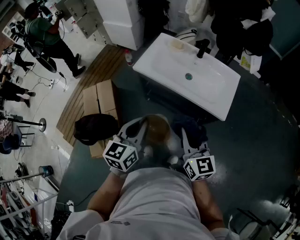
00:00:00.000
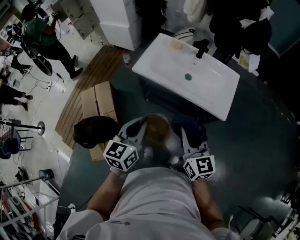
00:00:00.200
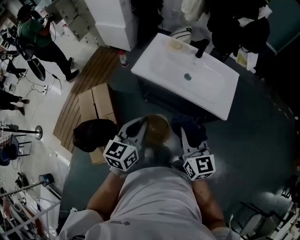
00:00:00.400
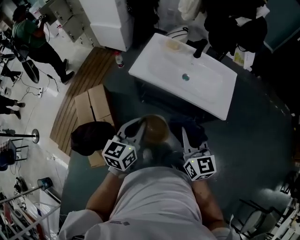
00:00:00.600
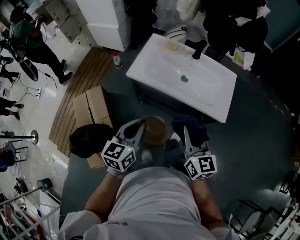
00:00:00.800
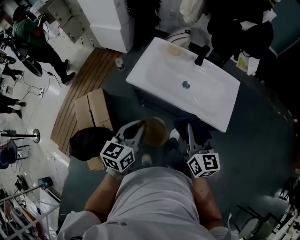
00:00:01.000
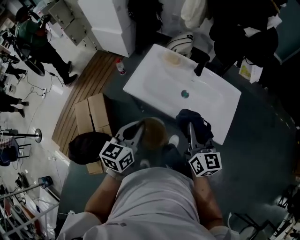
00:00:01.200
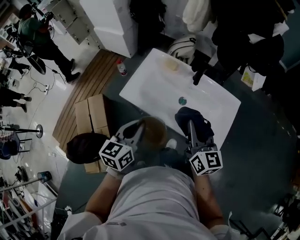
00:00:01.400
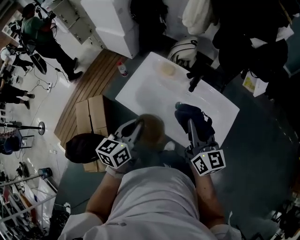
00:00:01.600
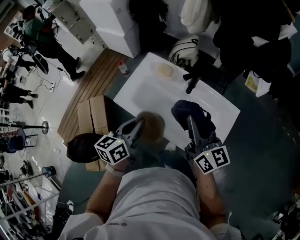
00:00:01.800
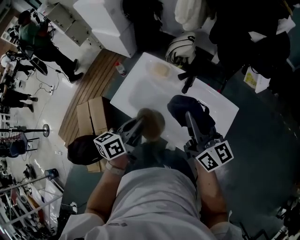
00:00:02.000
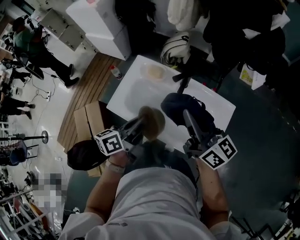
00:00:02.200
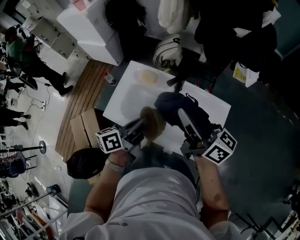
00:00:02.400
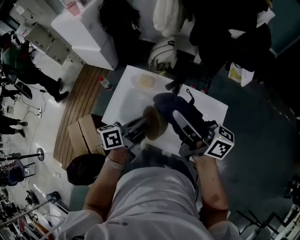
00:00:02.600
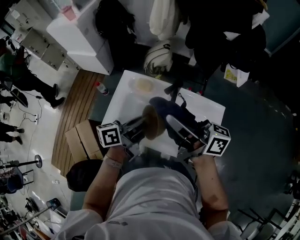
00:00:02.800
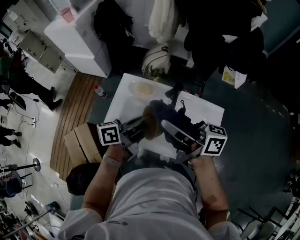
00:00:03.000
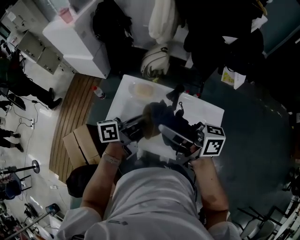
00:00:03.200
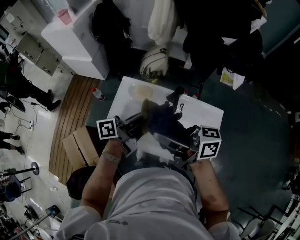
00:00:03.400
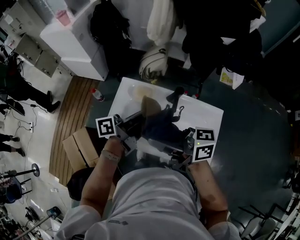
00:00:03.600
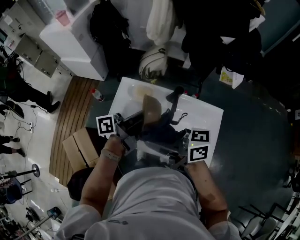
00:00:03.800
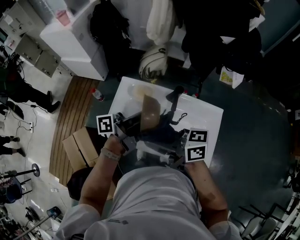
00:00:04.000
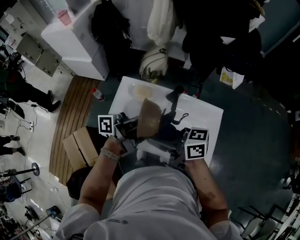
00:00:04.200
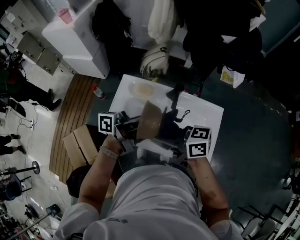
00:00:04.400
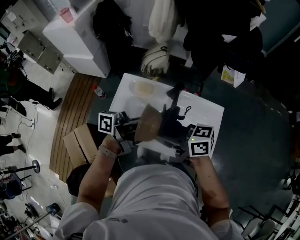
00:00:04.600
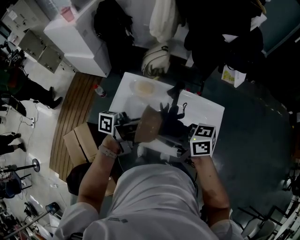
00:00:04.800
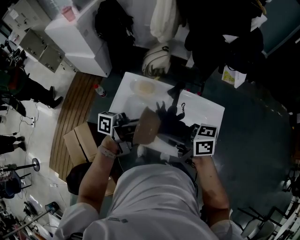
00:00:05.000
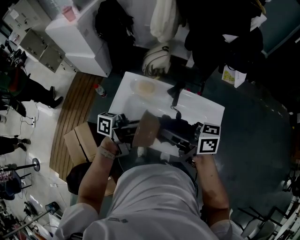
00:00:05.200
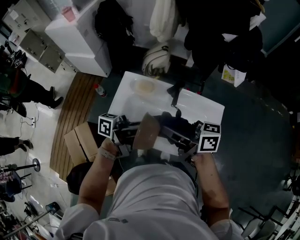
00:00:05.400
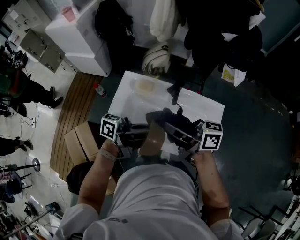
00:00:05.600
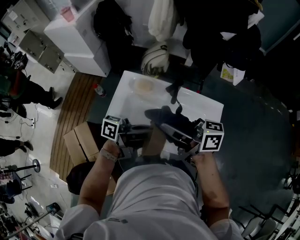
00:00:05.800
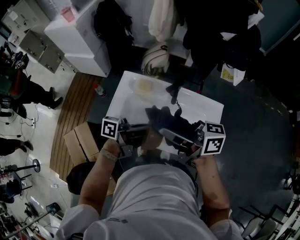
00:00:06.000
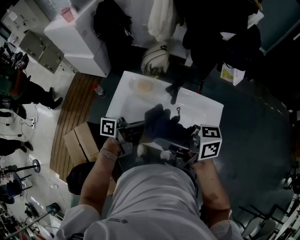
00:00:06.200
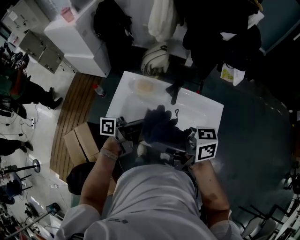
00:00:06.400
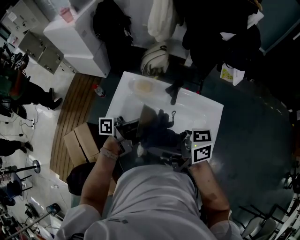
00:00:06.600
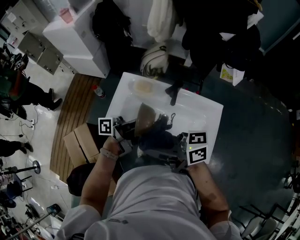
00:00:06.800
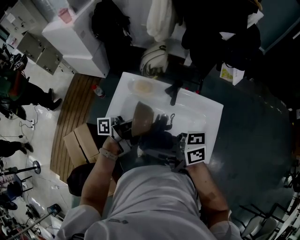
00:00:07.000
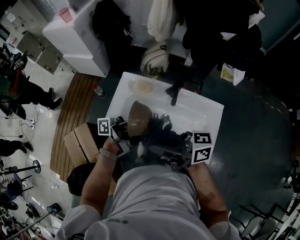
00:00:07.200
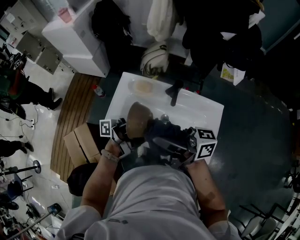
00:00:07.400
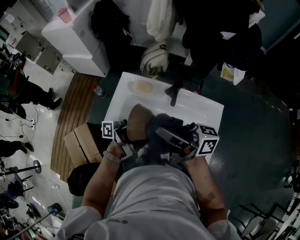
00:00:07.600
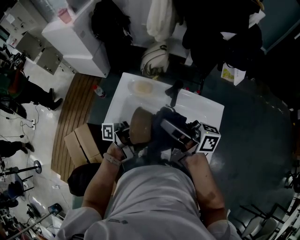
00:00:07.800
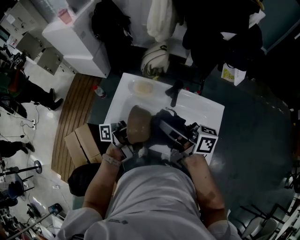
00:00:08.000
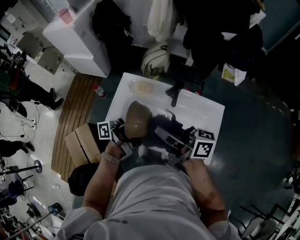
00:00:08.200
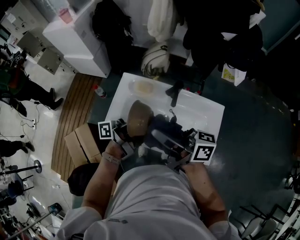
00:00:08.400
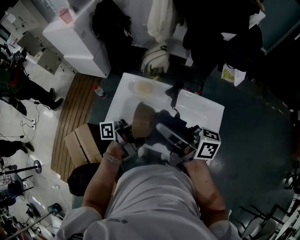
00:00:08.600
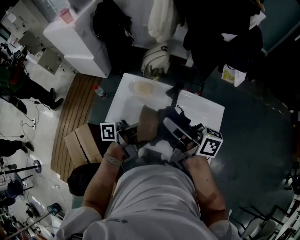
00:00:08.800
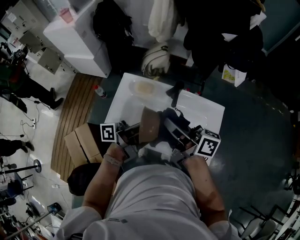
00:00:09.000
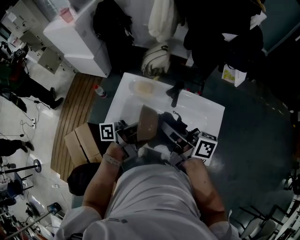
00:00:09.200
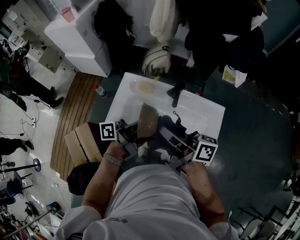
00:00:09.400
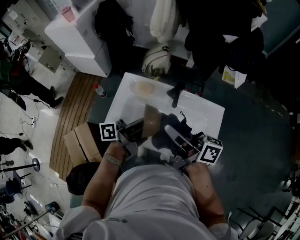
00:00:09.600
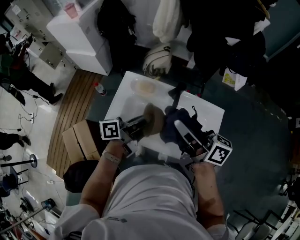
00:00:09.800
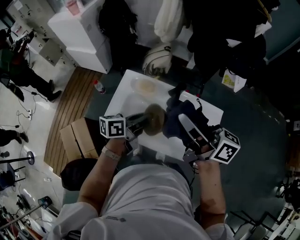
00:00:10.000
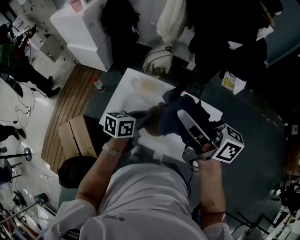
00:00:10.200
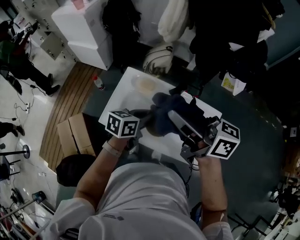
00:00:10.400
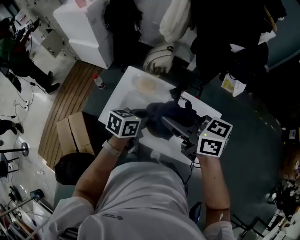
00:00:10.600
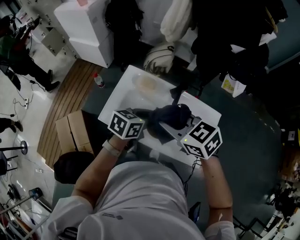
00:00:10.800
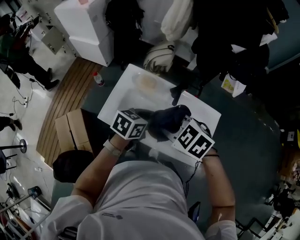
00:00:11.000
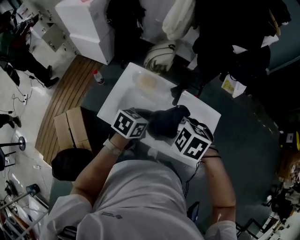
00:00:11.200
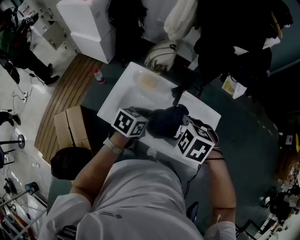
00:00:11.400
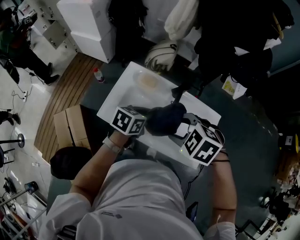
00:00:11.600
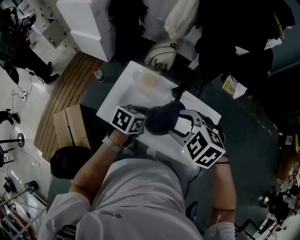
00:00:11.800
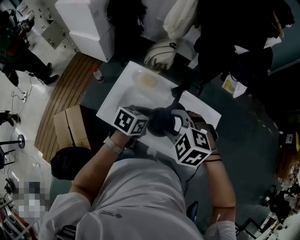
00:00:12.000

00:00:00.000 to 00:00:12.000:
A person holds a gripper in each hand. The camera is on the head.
00:00:00.000 to 00:00:01.600: Both grippers move forward, roughly 25 cm.
00:00:01.600 to 00:00:03.000: The right gripper is displaced upward, forward and to the left by roughly 15 cm, and changes its angle by some 50 degrees. The left gripper is displaced forward and to the right by approximately 15 cm, and rotates approximately 50 degrees.
00:00:03.000 to 00:00:04.400: The left gripper moves upward, about 5 cm, and changes its angle by approximately 30 degrees. The right gripper travels downward by about 10 cm, and swivels some 20 degrees.
00:00:04.400 to 00:00:06.000: The left gripper shifts by roughly 10 cm. Meanwhile the right gripper goes roughly 10 cm upward.
00:00:06.000 to 00:00:07.600: The left gripper changes place by some 5 cm, and turns by approximately 30 degrees.
00:00:07.600 to 00:00:09.000: The right gripper shifts by about 5 cm, and turns by approximately 20 degrees.
00:00:09.000 to 00:00:10.400: The right gripper heads upward, covering some 10 cm, and changes its angle by about 20 degrees; the left gripper travels downward by about 10 cm, and tilts its fingers about 50 degrees downward.
00:00:10.400 to 00:00:12.000: The right gripper heads downward, covering about 15 cm, angles its fingers downward, by approximately 60 degrees, and opens.

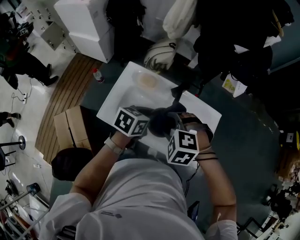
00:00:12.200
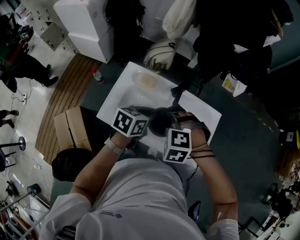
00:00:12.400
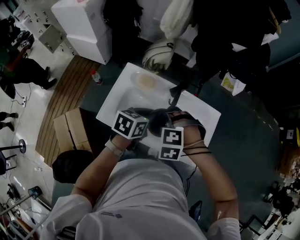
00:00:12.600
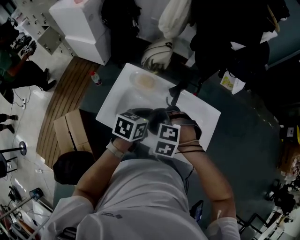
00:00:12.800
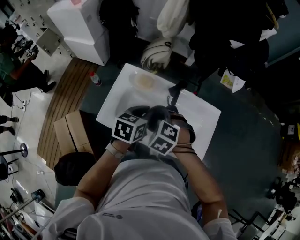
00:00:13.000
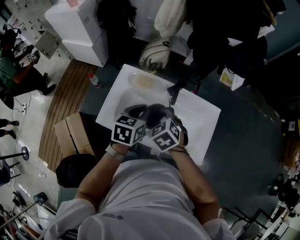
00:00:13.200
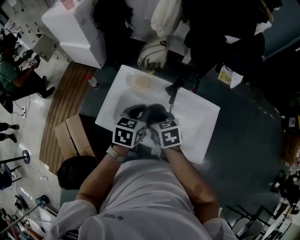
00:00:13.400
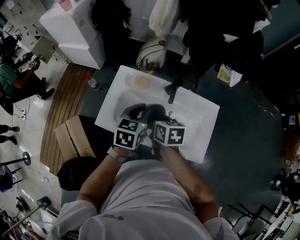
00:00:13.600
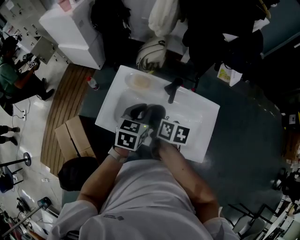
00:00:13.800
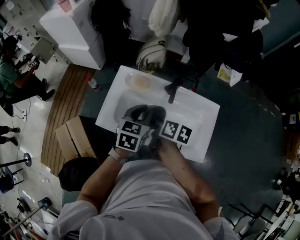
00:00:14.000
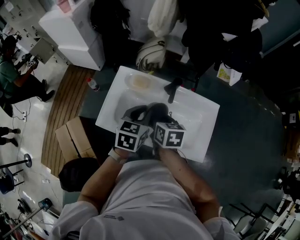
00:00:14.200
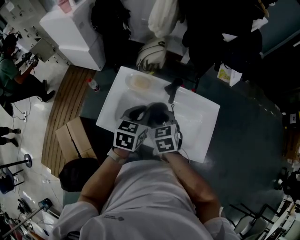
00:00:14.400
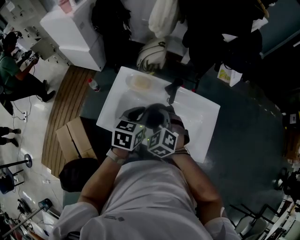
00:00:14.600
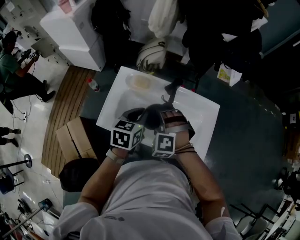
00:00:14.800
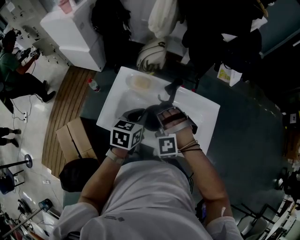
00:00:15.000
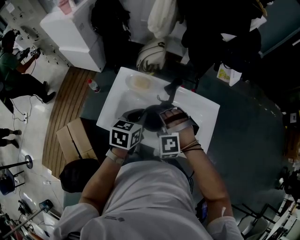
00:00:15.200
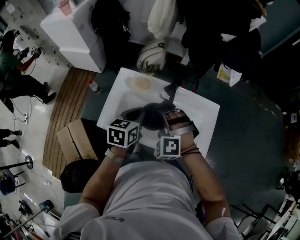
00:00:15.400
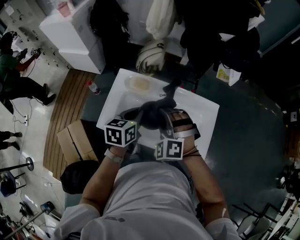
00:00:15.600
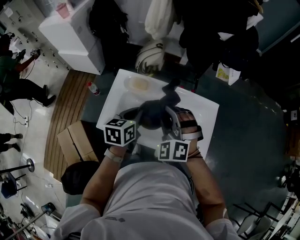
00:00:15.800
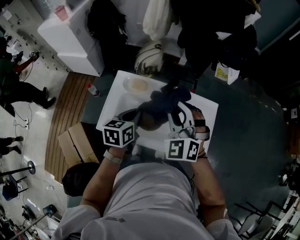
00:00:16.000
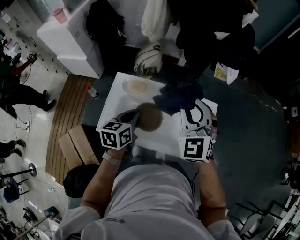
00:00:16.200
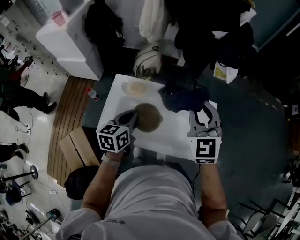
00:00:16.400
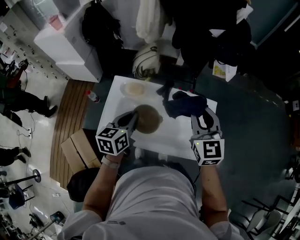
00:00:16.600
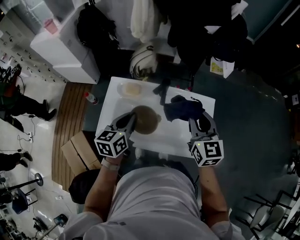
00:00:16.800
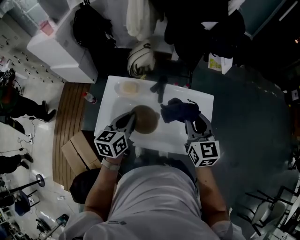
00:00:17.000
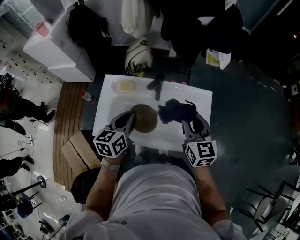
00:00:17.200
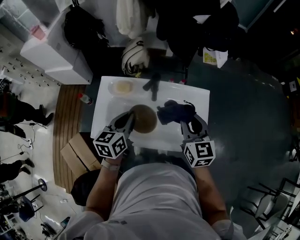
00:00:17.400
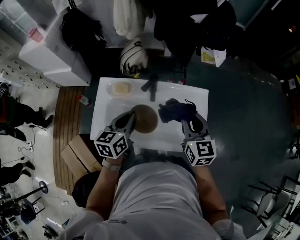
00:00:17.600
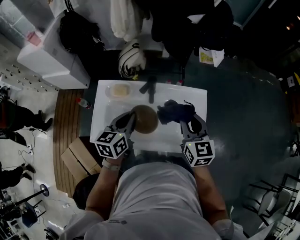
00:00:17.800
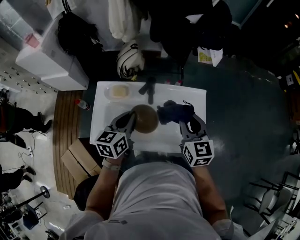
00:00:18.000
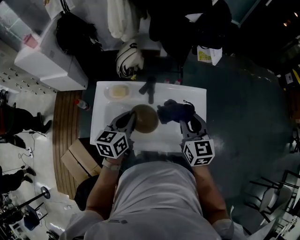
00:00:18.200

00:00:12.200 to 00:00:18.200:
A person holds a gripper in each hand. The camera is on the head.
00:00:12.200 to 00:00:13.800: The right gripper shifts approximately 5 cm downward, and rotates around the line of its fingers by about 100 degrees, clockwise from behind. Meanwhile the left gripper changes its angle by about 20 degrees.
00:00:13.800 to 00:00:15.200: The right gripper rotates around the line of its fingers by about 130 degrees, counterclockwise from behind.
00:00:15.200 to 00:00:16.600: The right gripper moves to the right and upward, some 20 cm, and twists approximately 70 degrees clockwise, seen from behind.
00:00:16.600 to 00:00:18.200: The right gripper shifts roughly 10 cm downward; the left gripper shifts by approximately 5 cm.

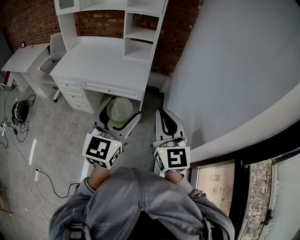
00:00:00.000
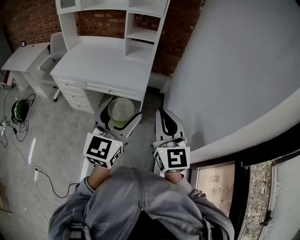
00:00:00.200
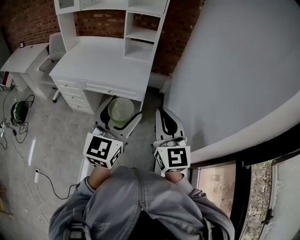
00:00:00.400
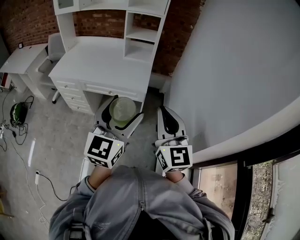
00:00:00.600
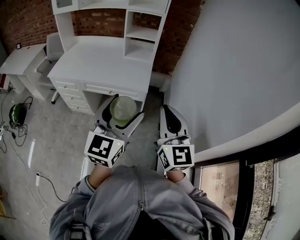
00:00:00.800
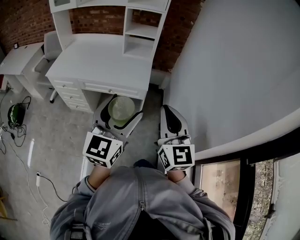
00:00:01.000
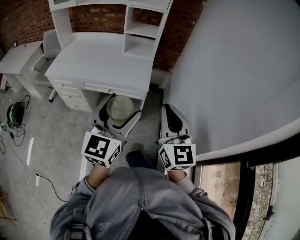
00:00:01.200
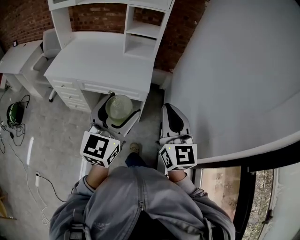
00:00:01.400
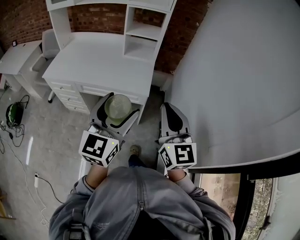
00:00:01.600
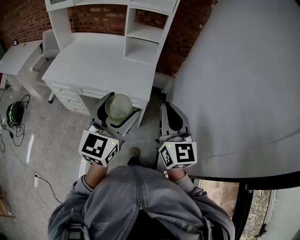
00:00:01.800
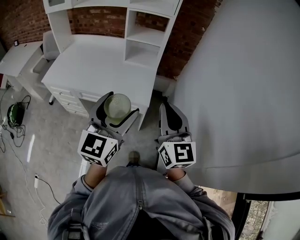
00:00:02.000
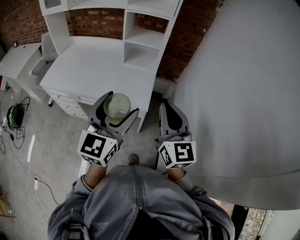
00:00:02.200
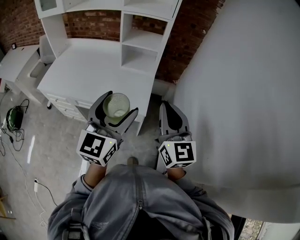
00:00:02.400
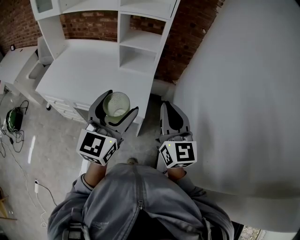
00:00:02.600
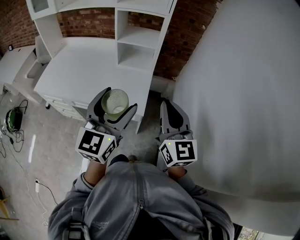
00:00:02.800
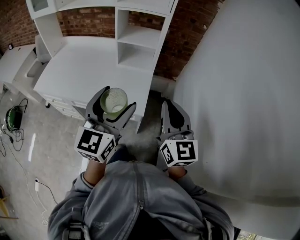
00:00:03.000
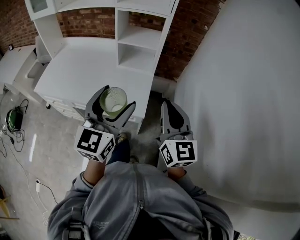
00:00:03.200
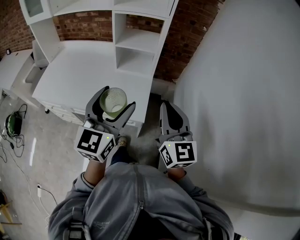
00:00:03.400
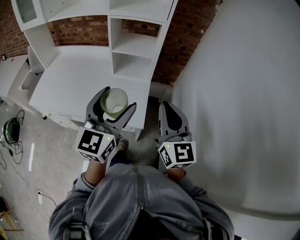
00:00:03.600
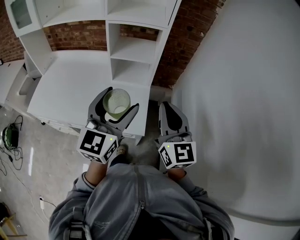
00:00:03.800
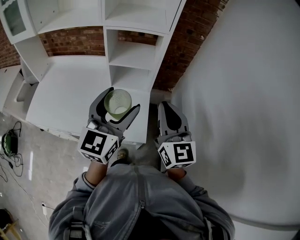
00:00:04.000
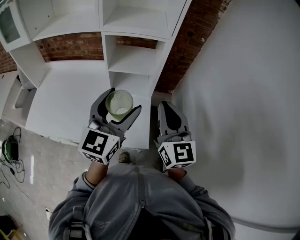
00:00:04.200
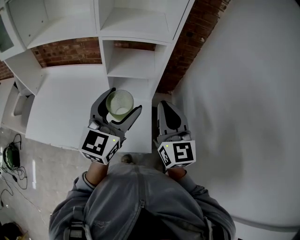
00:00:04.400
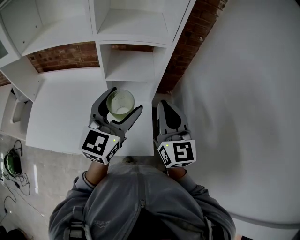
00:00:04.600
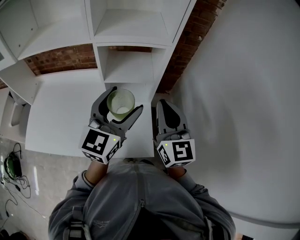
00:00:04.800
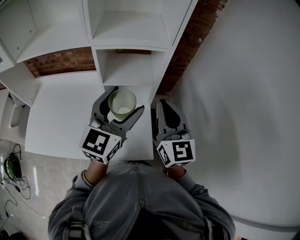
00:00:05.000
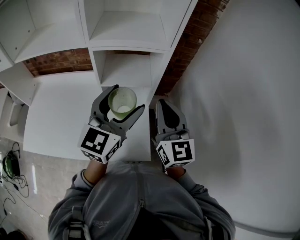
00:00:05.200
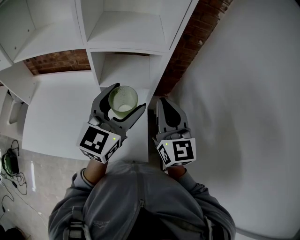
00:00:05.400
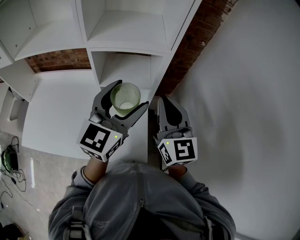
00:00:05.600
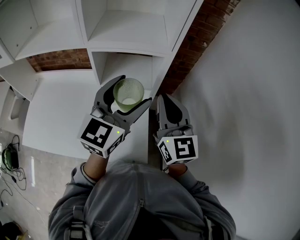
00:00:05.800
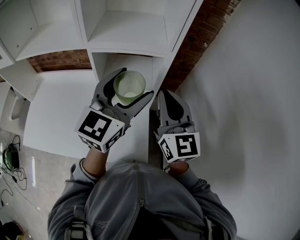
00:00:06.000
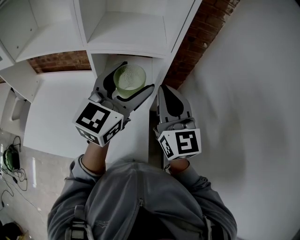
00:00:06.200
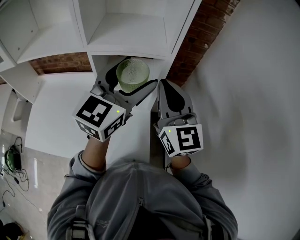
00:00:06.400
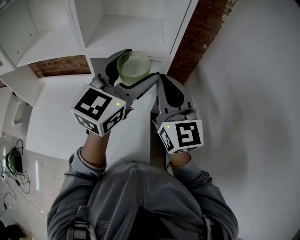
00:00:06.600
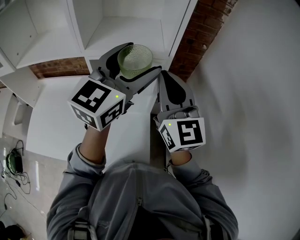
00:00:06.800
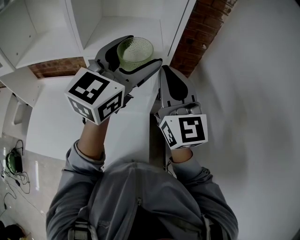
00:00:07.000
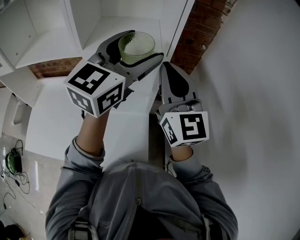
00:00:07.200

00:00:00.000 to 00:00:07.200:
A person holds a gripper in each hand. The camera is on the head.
00:00:00.000 to 00:00:01.400: The right gripper is displaced forward by about 10 cm; the left gripper travels forward and to the left by approximately 10 cm.
00:00:01.400 to 00:00:02.800: The two grippers go approximately 25 cm forward.
00:00:02.800 to 00:00:04.400: The grippers both shift forward by some 25 cm.
00:00:04.400 to 00:00:05.800: Both grippers travel together forward, approximately 10 cm.
00:00:05.800 to 00:00:07.200: Both grippers move upward and forward, about 15 cm.
